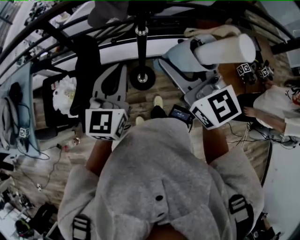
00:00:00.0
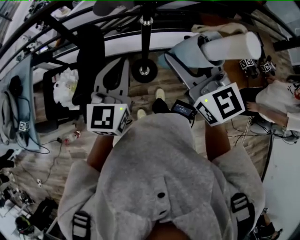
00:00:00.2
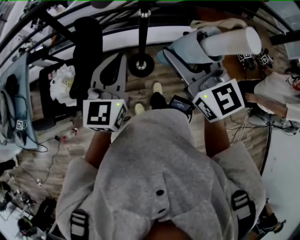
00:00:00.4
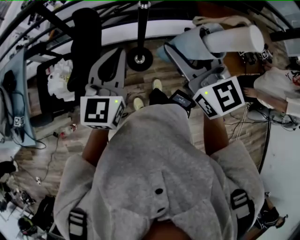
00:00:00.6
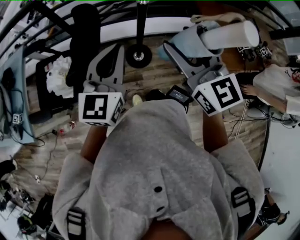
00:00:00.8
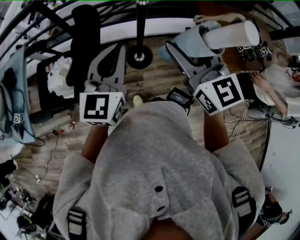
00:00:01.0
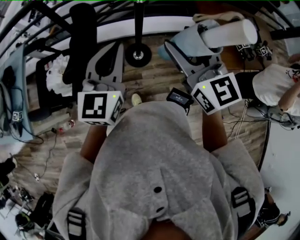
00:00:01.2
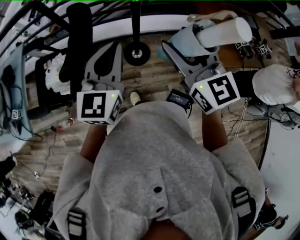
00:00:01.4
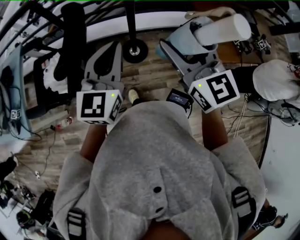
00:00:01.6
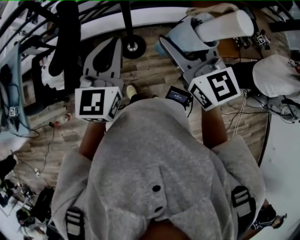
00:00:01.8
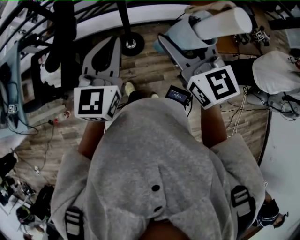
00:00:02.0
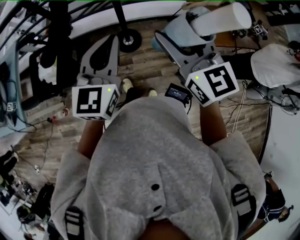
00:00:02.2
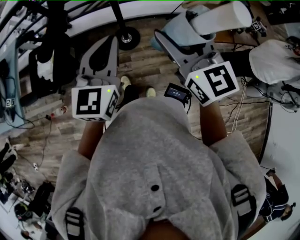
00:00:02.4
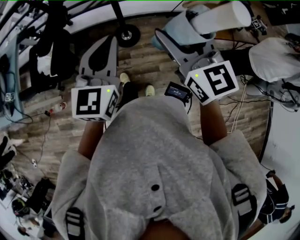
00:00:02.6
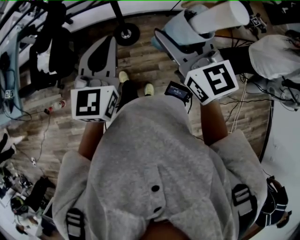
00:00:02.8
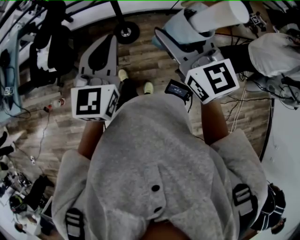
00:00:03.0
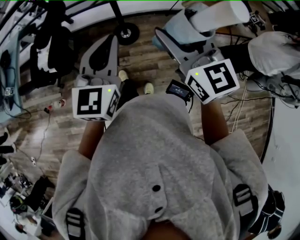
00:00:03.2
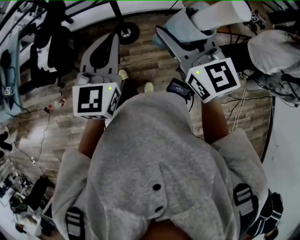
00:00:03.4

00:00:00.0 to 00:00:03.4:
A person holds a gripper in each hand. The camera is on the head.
00:00:00.0 to 00:00:01.6: The two grippers go some 10 cm backward.
00:00:01.6 to 00:00:03.4: The grippers both shift backward and to the right by about 20 cm.

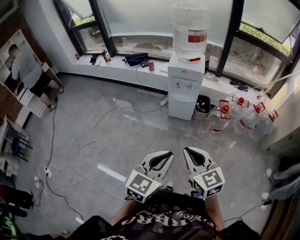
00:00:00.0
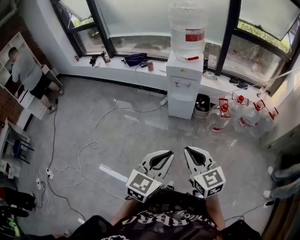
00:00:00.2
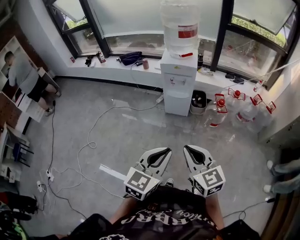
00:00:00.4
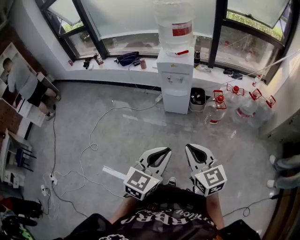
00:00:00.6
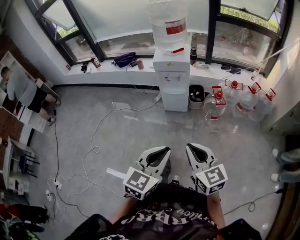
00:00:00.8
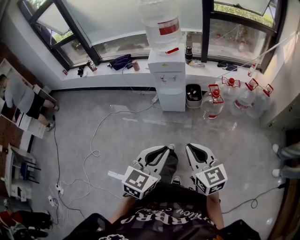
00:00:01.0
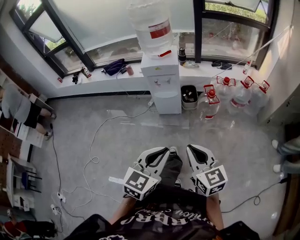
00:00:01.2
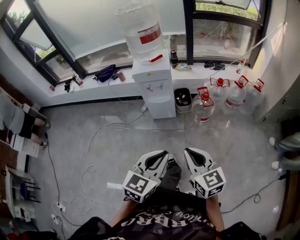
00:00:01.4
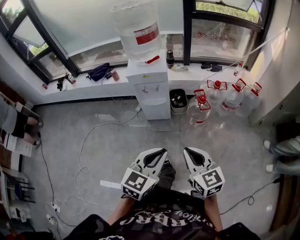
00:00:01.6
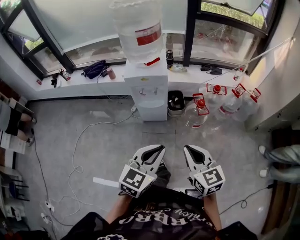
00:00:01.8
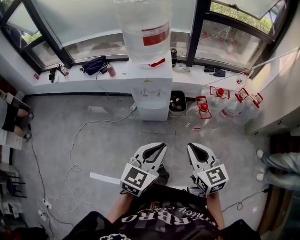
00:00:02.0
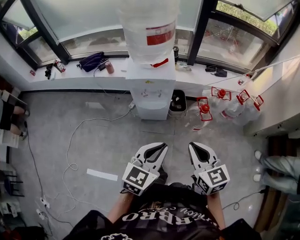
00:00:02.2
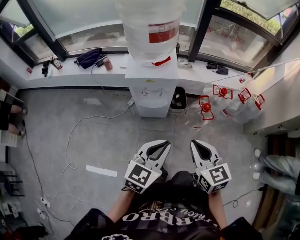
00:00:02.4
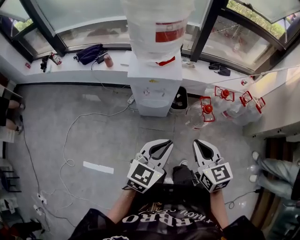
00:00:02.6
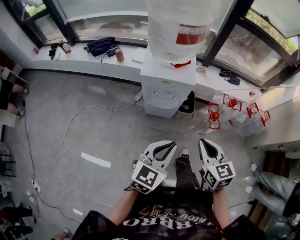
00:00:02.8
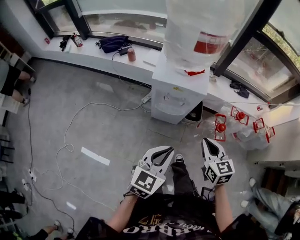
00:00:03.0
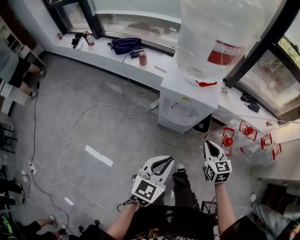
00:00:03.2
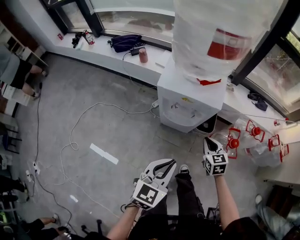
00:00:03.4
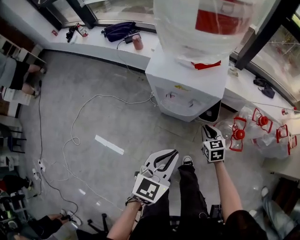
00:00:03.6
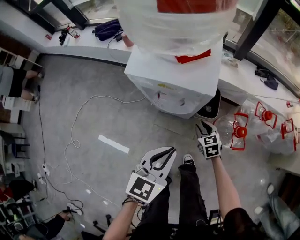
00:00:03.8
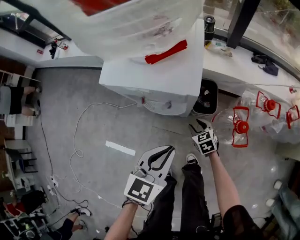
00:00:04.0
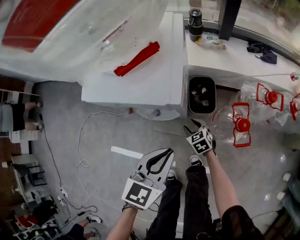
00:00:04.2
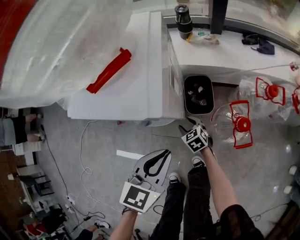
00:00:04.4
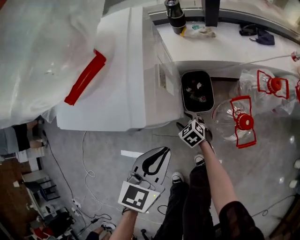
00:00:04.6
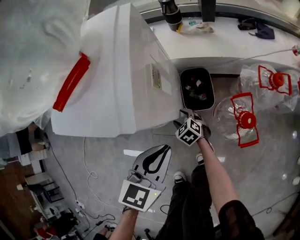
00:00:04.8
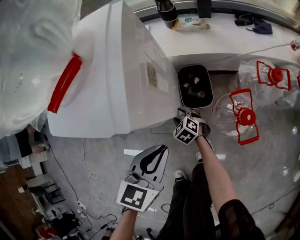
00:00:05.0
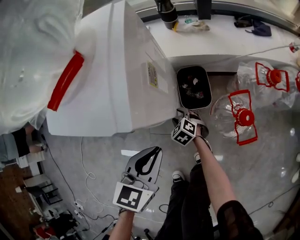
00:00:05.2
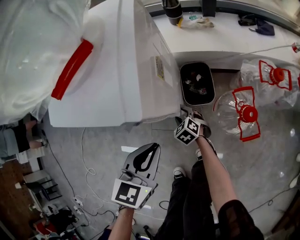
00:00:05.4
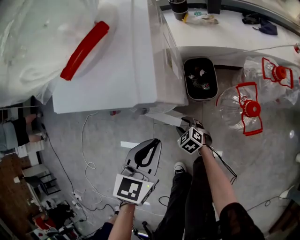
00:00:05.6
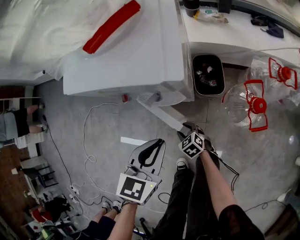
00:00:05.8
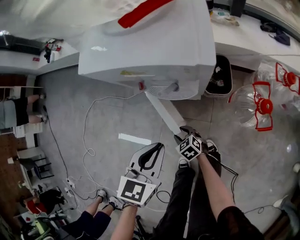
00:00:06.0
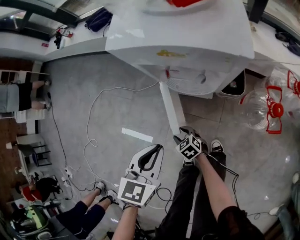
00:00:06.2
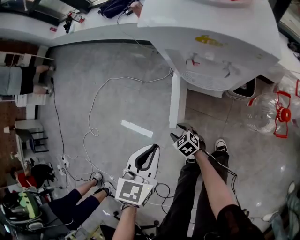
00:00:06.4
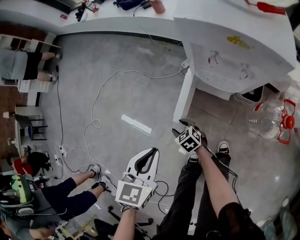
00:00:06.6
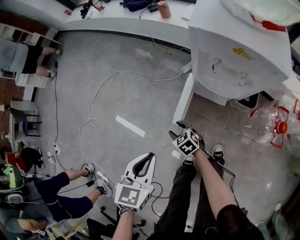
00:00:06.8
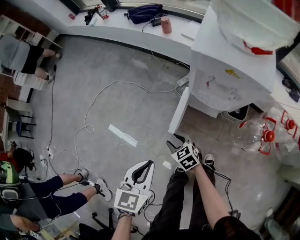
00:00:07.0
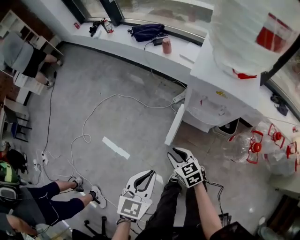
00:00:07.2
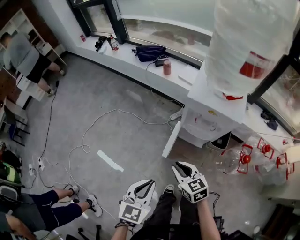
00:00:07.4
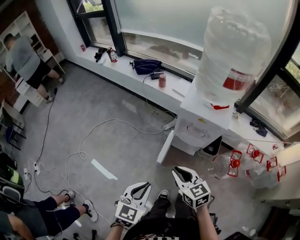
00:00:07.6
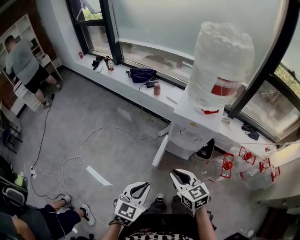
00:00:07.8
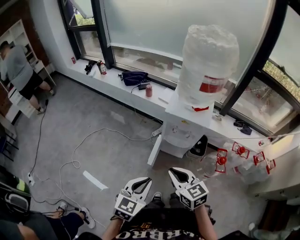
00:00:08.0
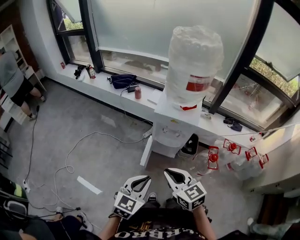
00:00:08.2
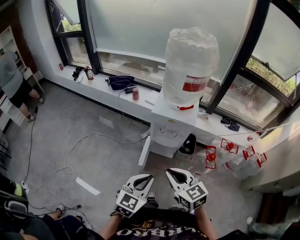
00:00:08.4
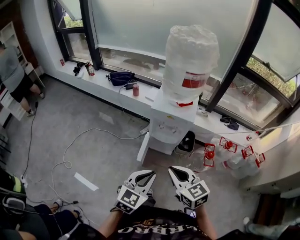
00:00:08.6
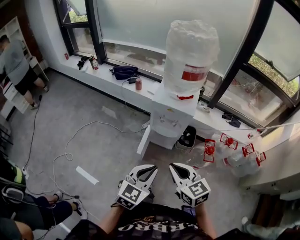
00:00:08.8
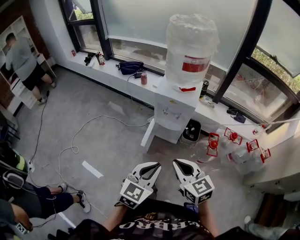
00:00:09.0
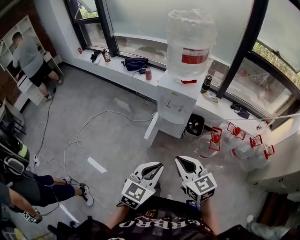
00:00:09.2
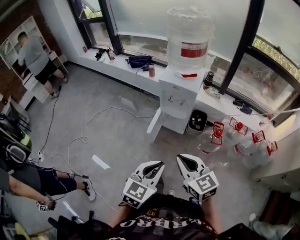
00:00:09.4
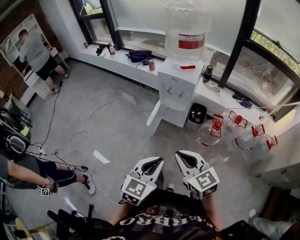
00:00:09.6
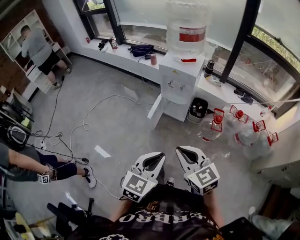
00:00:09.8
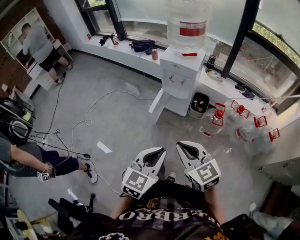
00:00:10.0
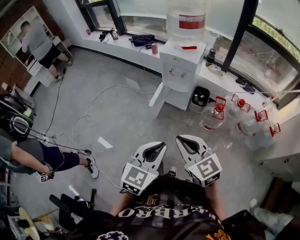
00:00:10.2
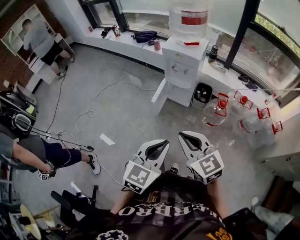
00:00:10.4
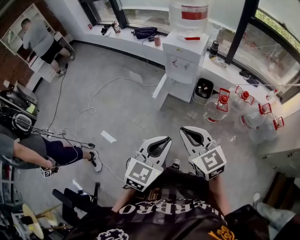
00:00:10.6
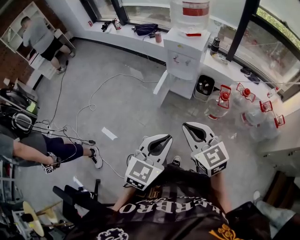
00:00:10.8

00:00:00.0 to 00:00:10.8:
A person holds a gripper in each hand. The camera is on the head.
00:00:00.0 to 00:00:01.6: The right gripper moves to the right and forward, approximately 15 cm; the left gripper shifts some 15 cm forward and to the right.
00:00:01.6 to 00:00:03.0: The left gripper goes about 30 cm forward and to the left; the right gripper is displaced forward by some 30 cm.
00:00:03.0 to 00:00:04.6: The right gripper moves downward and forward, roughly 60 cm, turns by approximately 30 degrees, and opens, while the left gripper goes some 40 cm downward, forward and to the right.
00:00:04.6 to 00:00:06.2: Both grippers travel together to the left and backward, roughly 25 cm.
00:00:06.2 to 00:00:07.8: The right gripper heads upward, covering about 50 cm, rotates about 30 degrees, and closes. Meanwhile the left gripper shifts roughly 35 cm upward, to the left and backward.
00:00:07.8 to 00:00:09.2: The left gripper travels to the right, backward and upward by roughly 25 cm; the right gripper heads backward, to the right and upward, covering about 25 cm.
00:00:09.2 to 00:00:10.8: The two grippers go some 15 cm backward.

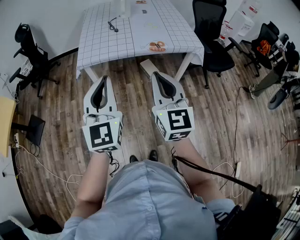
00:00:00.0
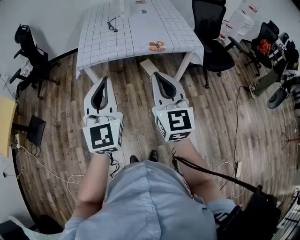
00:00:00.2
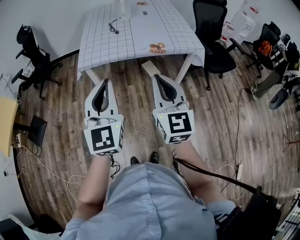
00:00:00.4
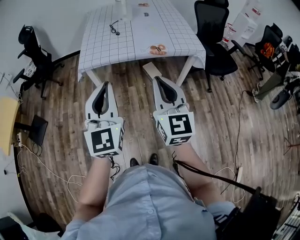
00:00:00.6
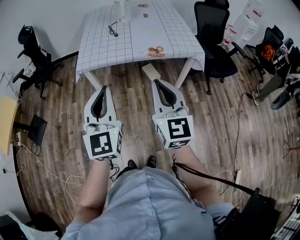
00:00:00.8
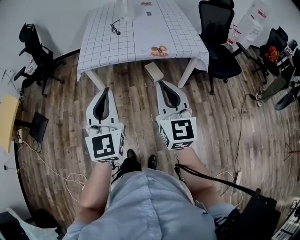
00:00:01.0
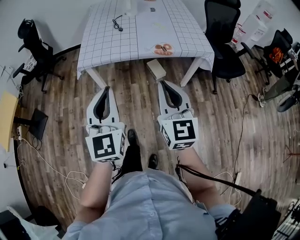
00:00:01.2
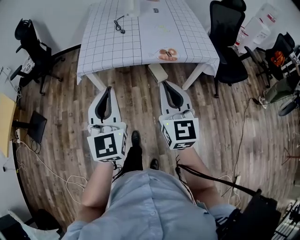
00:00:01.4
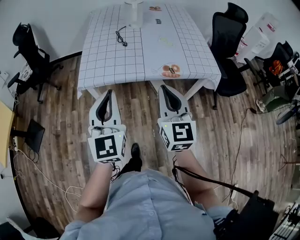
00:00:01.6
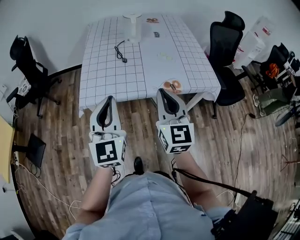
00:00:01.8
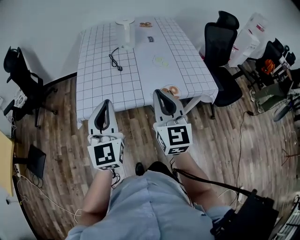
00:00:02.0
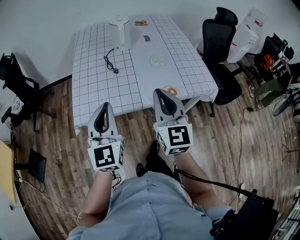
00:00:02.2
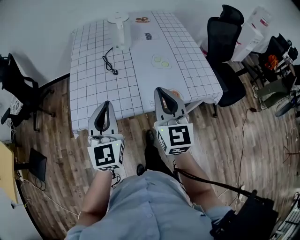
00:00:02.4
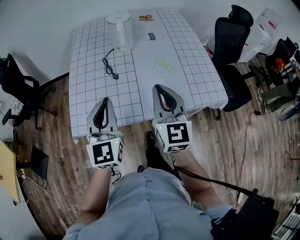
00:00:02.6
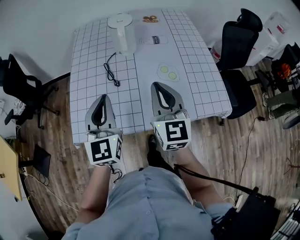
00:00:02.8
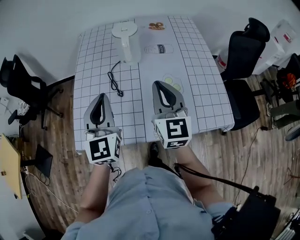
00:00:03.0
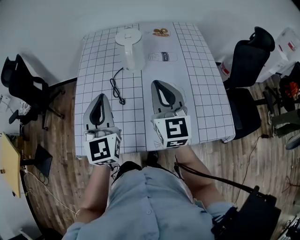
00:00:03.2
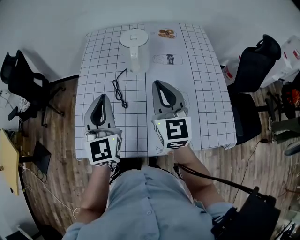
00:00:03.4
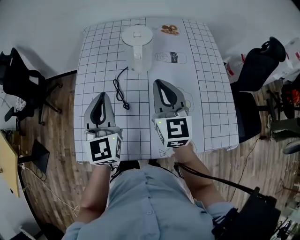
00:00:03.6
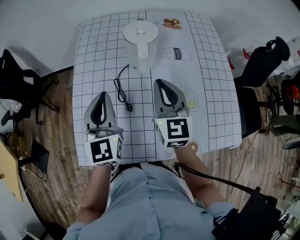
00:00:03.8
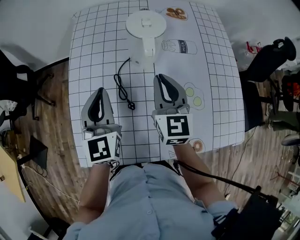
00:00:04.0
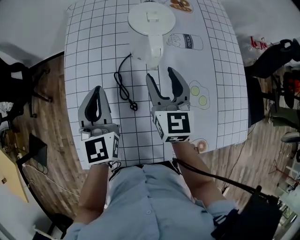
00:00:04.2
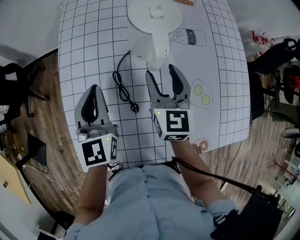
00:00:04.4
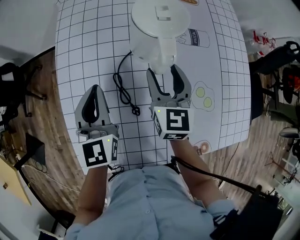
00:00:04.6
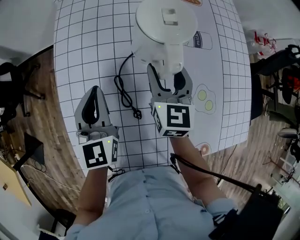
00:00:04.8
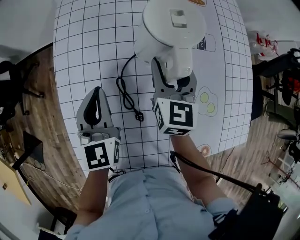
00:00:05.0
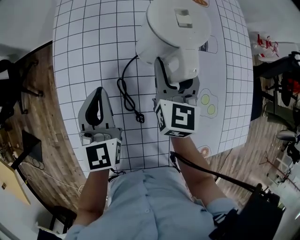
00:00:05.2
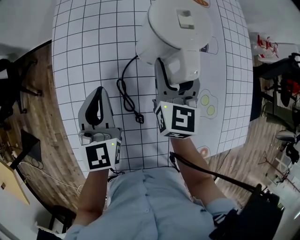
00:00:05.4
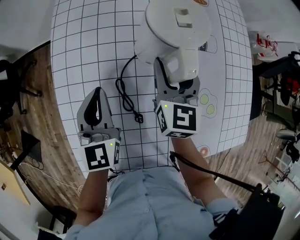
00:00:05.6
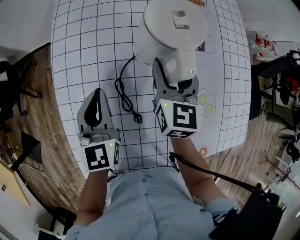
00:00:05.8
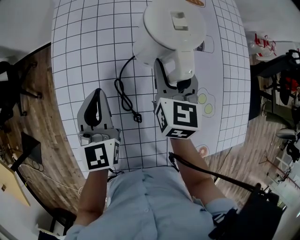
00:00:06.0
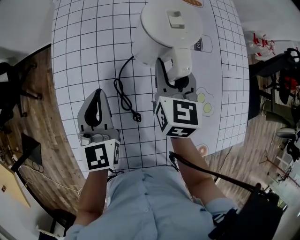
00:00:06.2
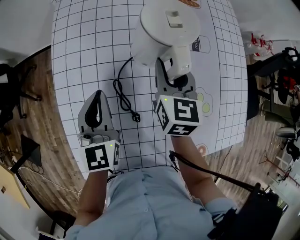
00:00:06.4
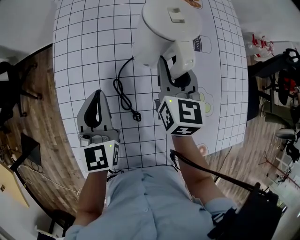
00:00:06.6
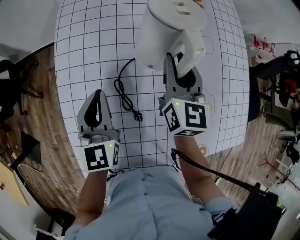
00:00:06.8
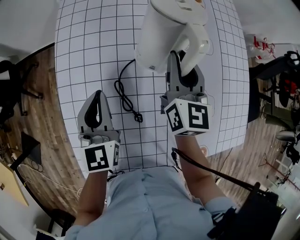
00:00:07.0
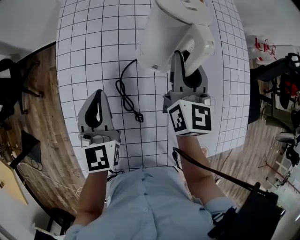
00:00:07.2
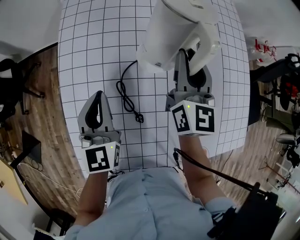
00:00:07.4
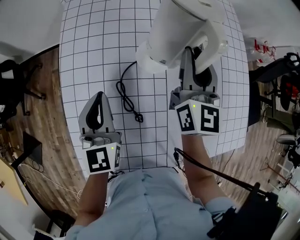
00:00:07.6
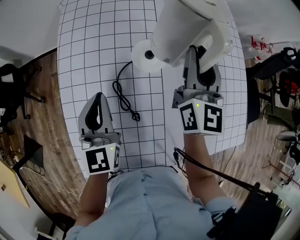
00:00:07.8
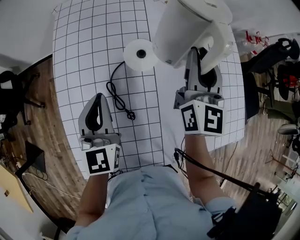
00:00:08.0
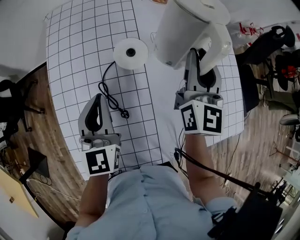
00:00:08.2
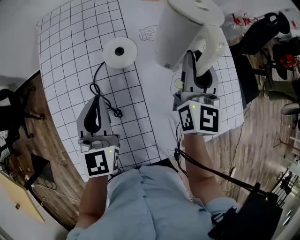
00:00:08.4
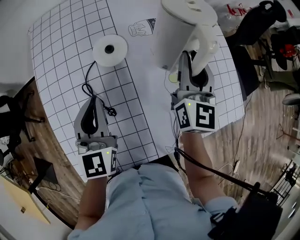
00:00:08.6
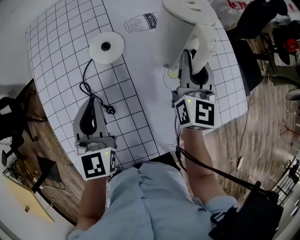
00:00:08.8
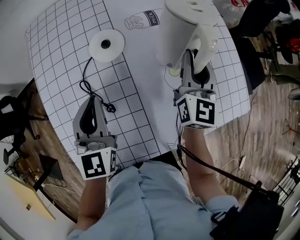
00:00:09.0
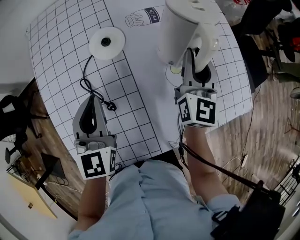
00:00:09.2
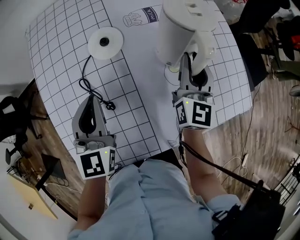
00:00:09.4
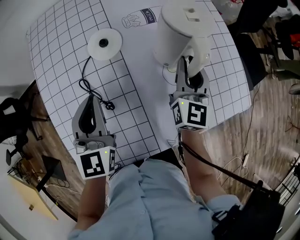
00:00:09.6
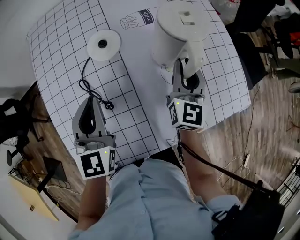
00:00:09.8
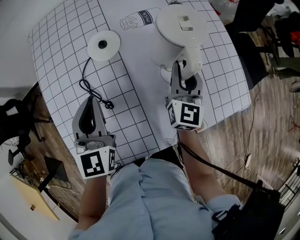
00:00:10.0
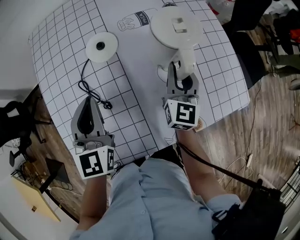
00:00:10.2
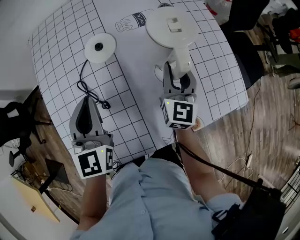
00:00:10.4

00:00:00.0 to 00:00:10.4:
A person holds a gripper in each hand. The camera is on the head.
00:00:00.0 to 00:00:01.4: Both grippers travel together forward and downward, roughly 15 cm.
00:00:01.4 to 00:00:03.0: Both grippers are carried forward, approximately 40 cm.
00:00:03.0 to 00:00:04.4: Both grippers travel together forward and downward, approximately 25 cm. The right gripper opens its fingers.
00:00:04.4 to 00:00:06.0: The left gripper ends up some 5 cm from where it was; the right gripper travels forward by approximately 5 cm.
00:00:06.0 to 00:00:07.4: The right gripper goes roughly 5 cm upward, and closes up.
00:00:07.4 to 00:00:09.0: The right gripper heads to the right and backward, covering about 20 cm; the left gripper heads to the right, covering roughly 10 cm.
00:00:09.0 to 00:00:10.4: The right gripper heads downward, covering about 5 cm.
